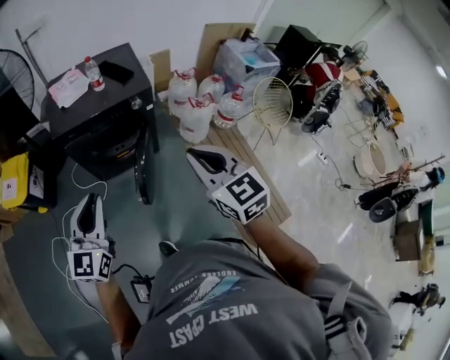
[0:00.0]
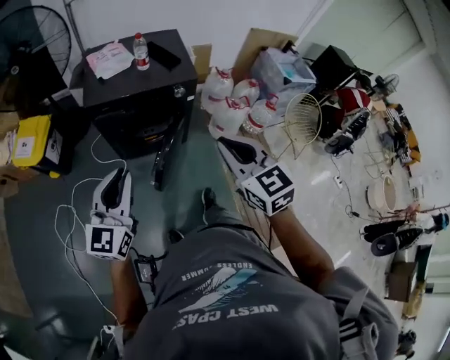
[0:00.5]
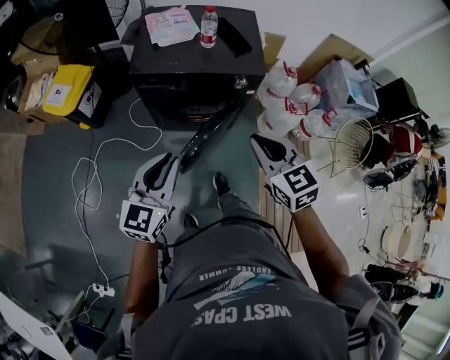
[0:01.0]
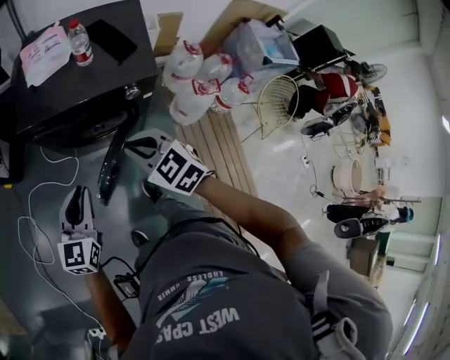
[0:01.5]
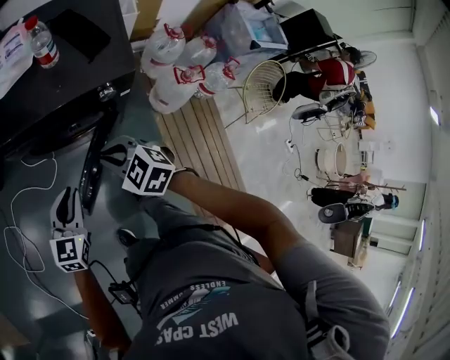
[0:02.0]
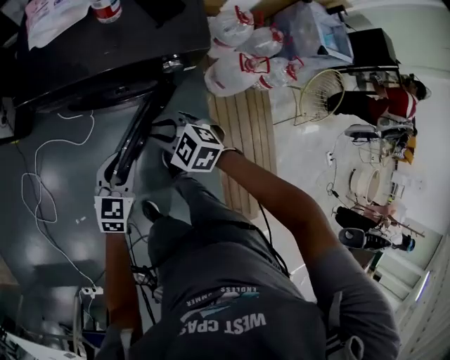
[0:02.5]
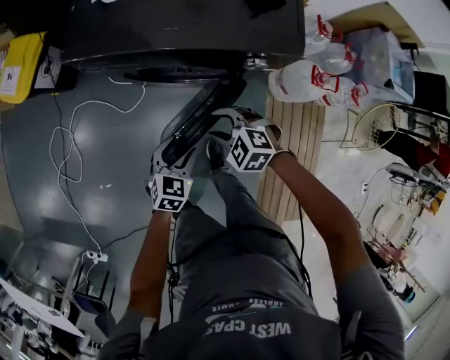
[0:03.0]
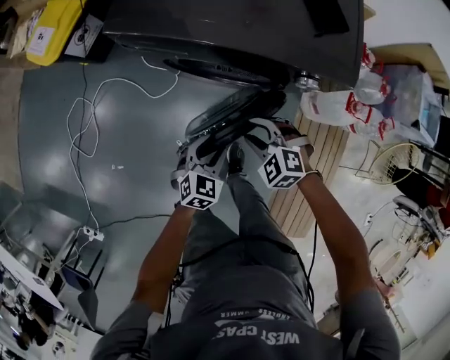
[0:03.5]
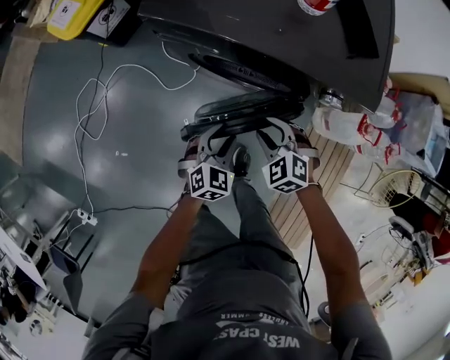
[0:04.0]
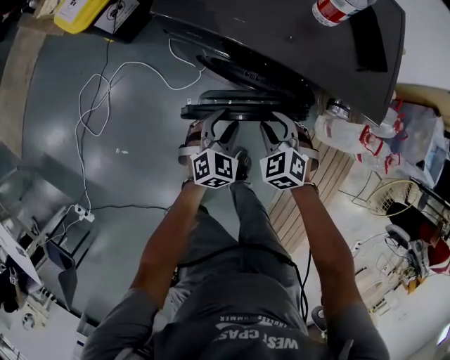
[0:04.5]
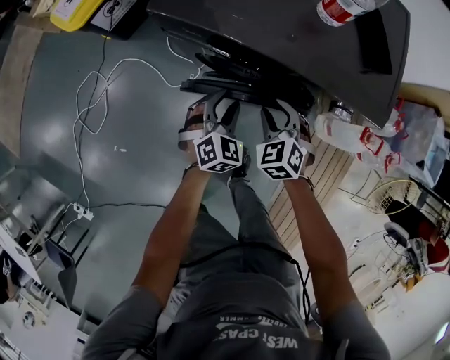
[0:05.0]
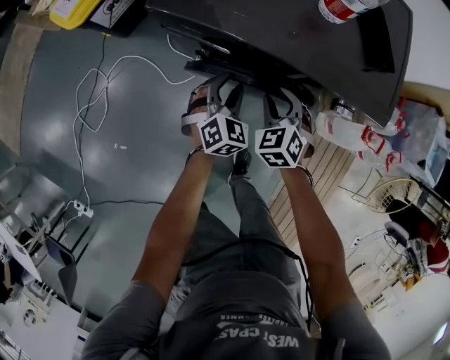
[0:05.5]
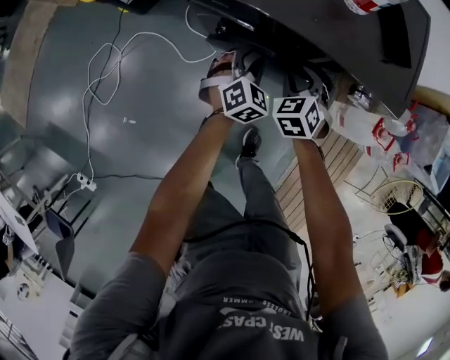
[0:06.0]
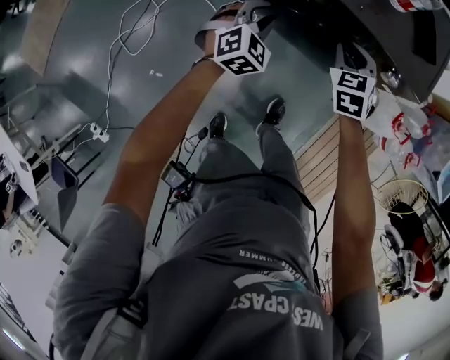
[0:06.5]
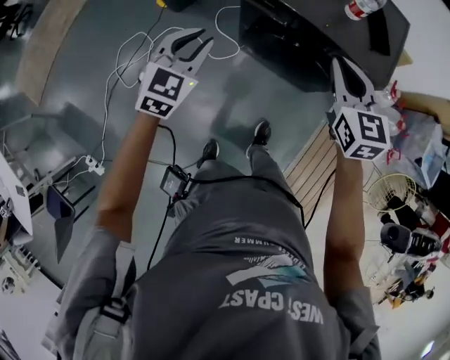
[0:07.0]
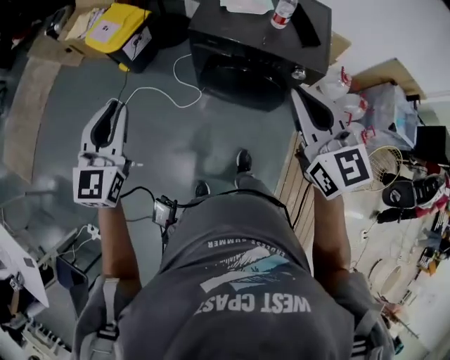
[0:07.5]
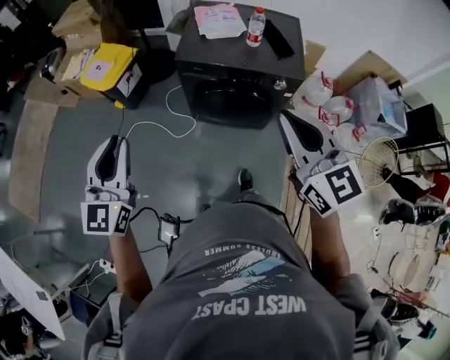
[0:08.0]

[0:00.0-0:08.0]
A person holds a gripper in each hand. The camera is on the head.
0:00.0 to 0:02.0: Both grippers travel together downward and forward, about 35 cm. The right gripper swivels roughly 40 degrees, while the left gripper turns by roughly 30 degrees.
0:02.0 to 0:04.0: Both grippers move downward, roughly 20 cm. The right gripper changes its angle by approximately 30 degrees, and opens its fingers, while the left gripper changes its angle by about 30 degrees, and opens its fingers.
0:04.0 to 0:06.0: Both grippers move forward, some 15 cm. The right gripper turns by approximately 30 degrees.
0:06.0 to 0:08.0: The left gripper is displaced upward, to the left and backward by about 60 cm, and tilts its fingers about 40 degrees upward, while the right gripper travels upward and backward by some 60 cm, tips its fingers upward by some 40 degrees, and closes.

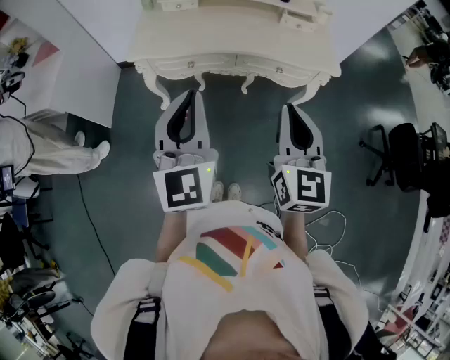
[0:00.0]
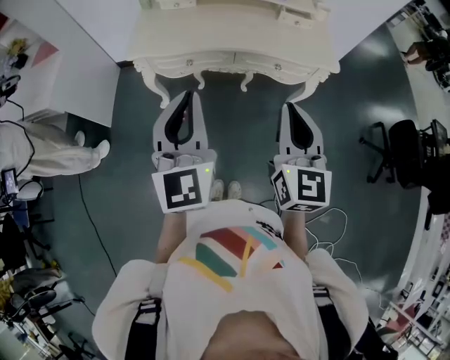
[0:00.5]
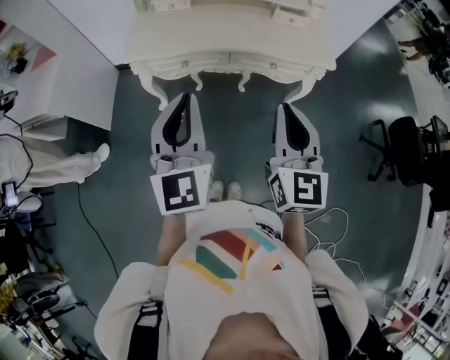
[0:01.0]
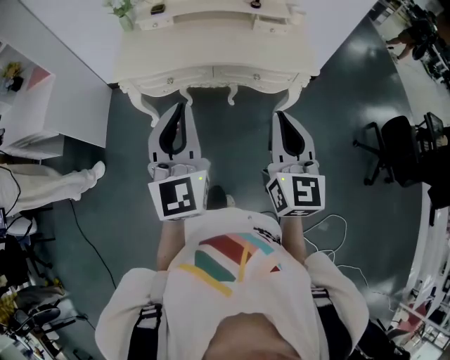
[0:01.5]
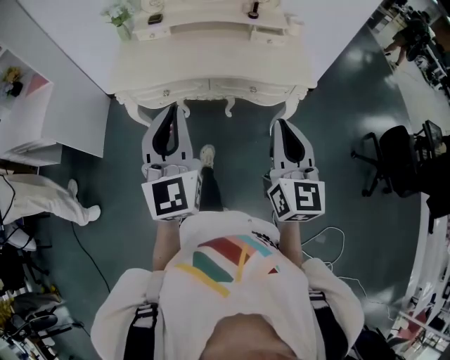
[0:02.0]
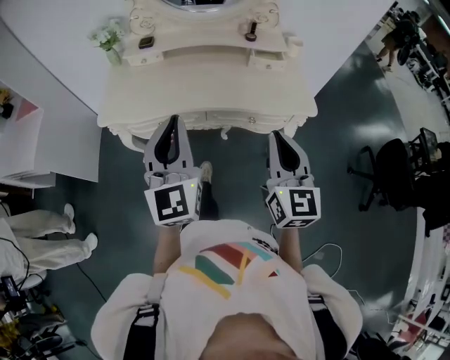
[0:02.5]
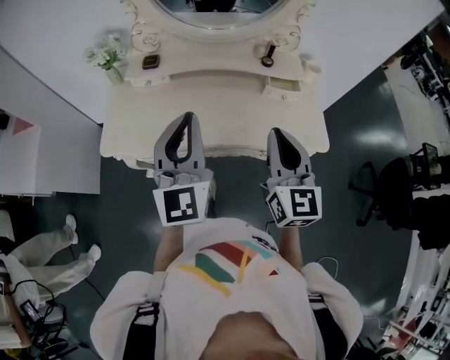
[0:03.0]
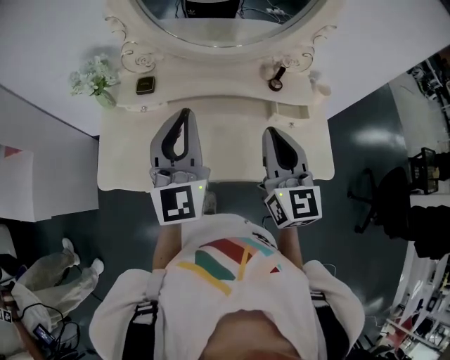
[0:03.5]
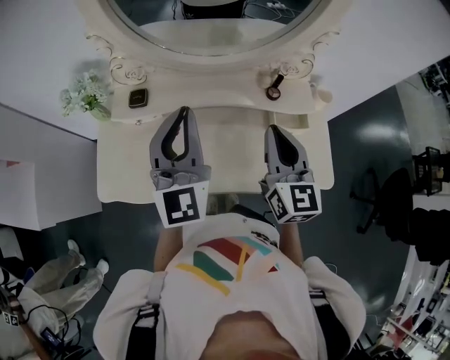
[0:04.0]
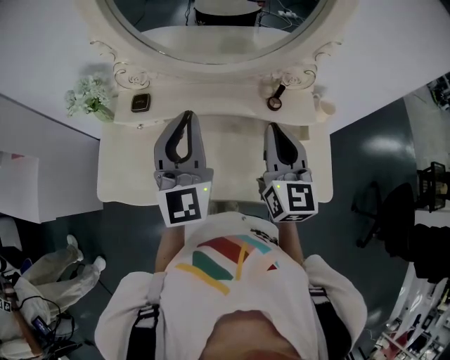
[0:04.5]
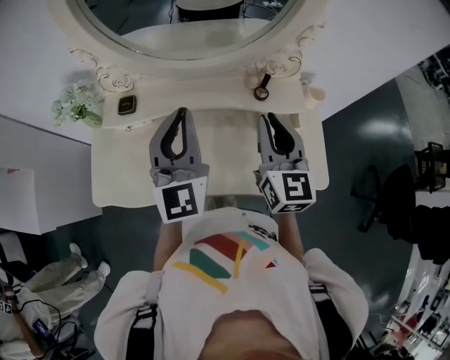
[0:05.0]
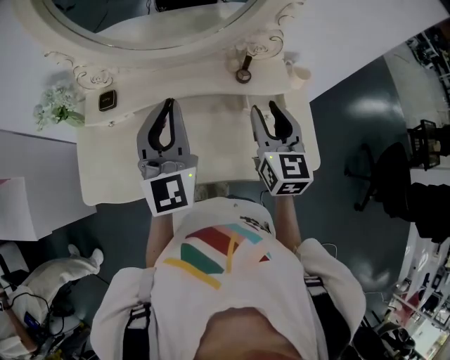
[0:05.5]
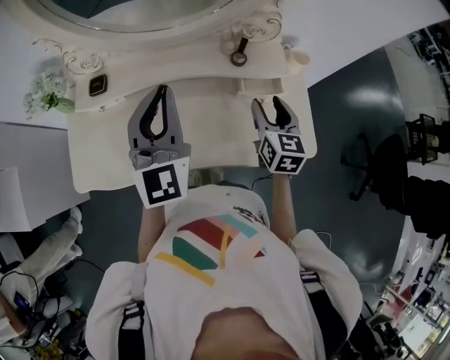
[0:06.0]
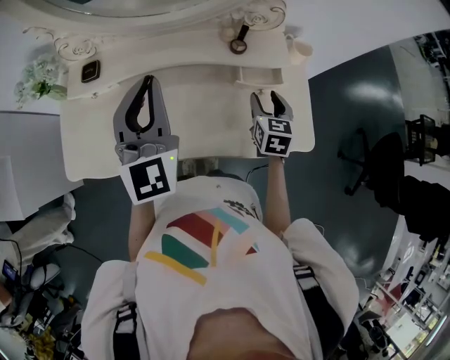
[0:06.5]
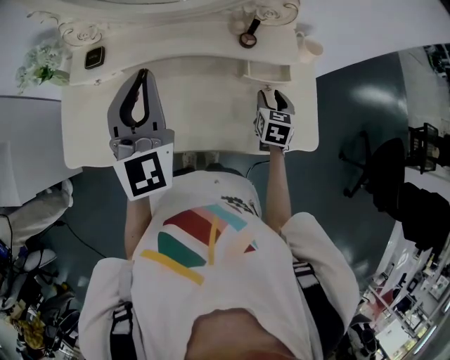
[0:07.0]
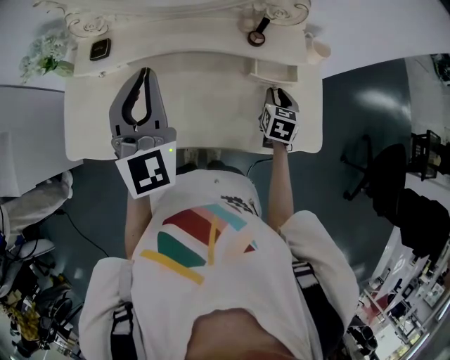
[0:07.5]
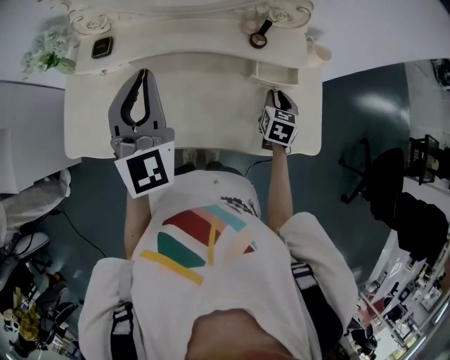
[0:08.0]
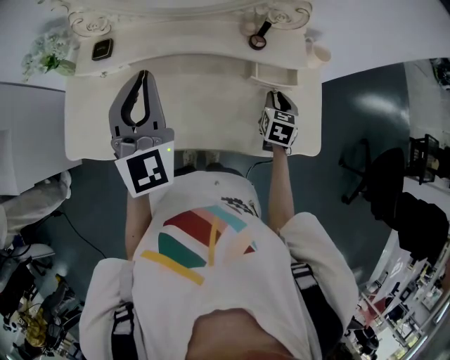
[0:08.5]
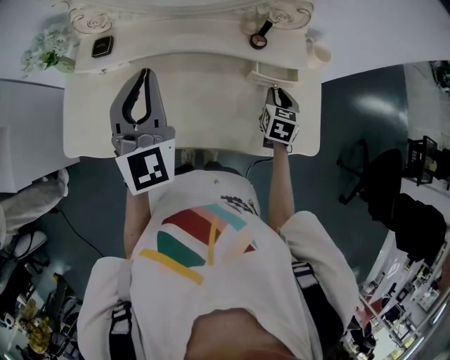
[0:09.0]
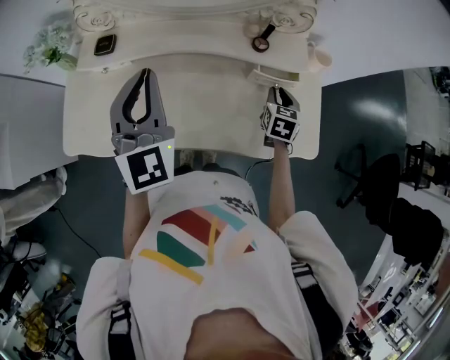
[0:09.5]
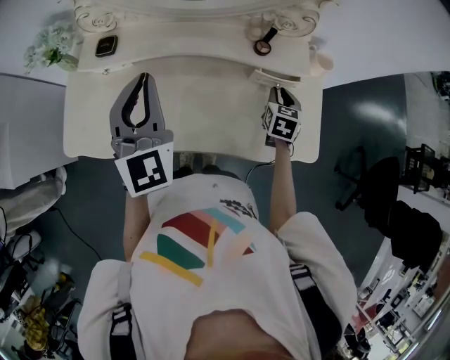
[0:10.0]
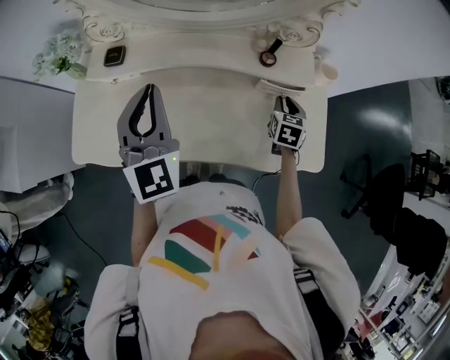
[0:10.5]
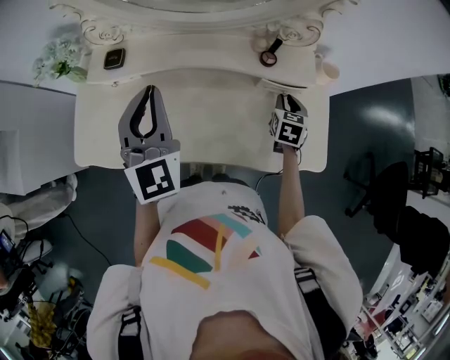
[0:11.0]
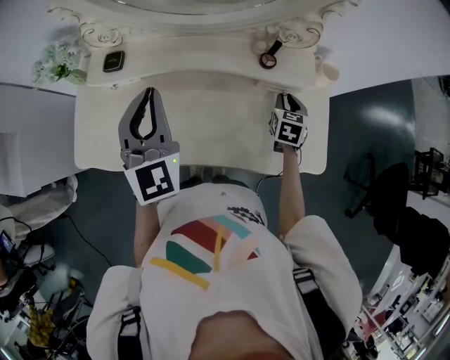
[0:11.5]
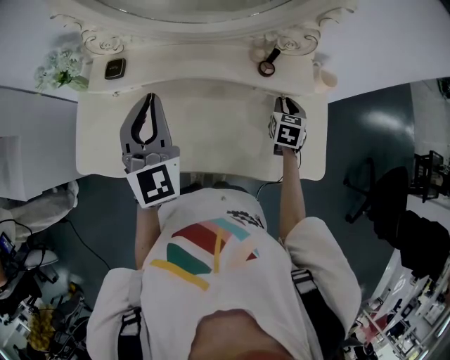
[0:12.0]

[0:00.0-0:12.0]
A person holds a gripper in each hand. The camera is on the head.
0:00.0 to 0:02.0: Both grippers move to the right, about 10 cm.
0:02.0 to 0:04.0: The two grippers travel together, forward, roughly 50 cm.
0:04.0 to 0:06.0: The left gripper is displaced to the right by approximately 5 cm. Meanwhile the right gripper moves downward and to the right, approximately 20 cm, changes its angle by approximately 20 degrees, and opens its fingers.
0:06.0 to 0:08.0: The right gripper goes approximately 15 cm downward, changes its angle by some 20 degrees, and closes up. The left gripper ends up approximately 5 cm from where it was.
0:08.0 to 0:10.0: The grippers move only a little.
0:10.0 to 0:12.0: The grippers make only small movements.

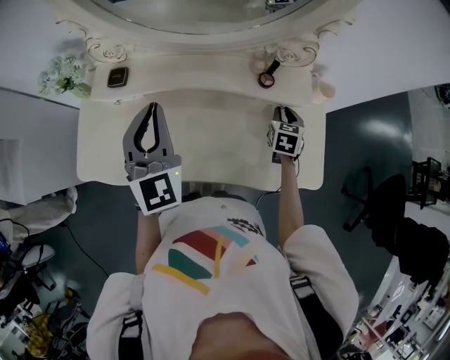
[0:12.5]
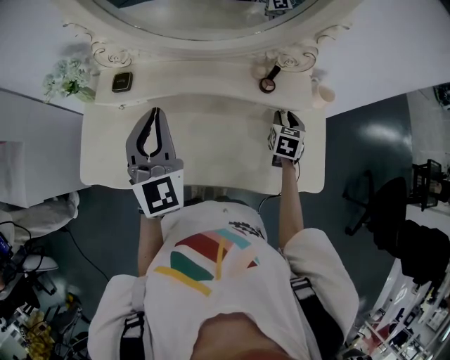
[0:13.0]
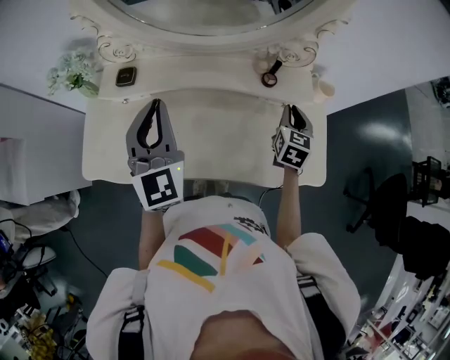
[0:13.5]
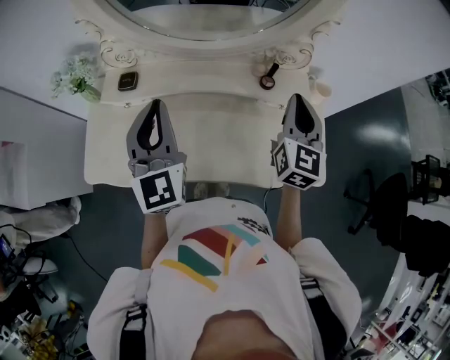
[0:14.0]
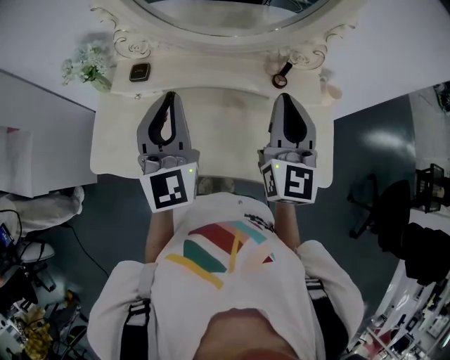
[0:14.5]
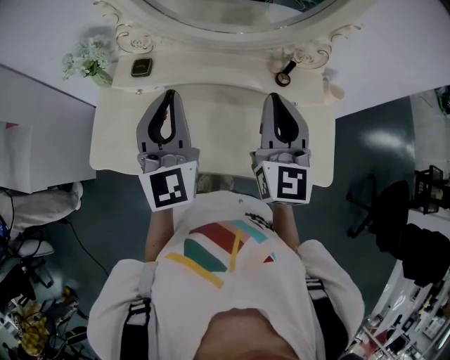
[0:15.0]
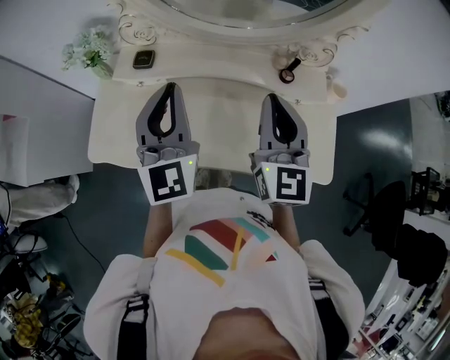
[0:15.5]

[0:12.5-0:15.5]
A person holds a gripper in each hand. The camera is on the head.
0:12.5 to 0:14.0: The left gripper shifts by approximately 5 cm. Meanwhile the right gripper travels upward by roughly 25 cm, and tilts its fingers roughly 40 degrees upward.
0:14.0 to 0:15.5: The right gripper is displaced to the left by about 15 cm.

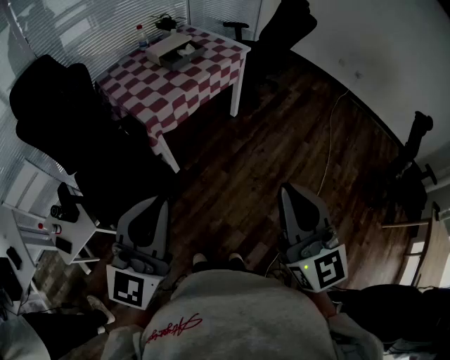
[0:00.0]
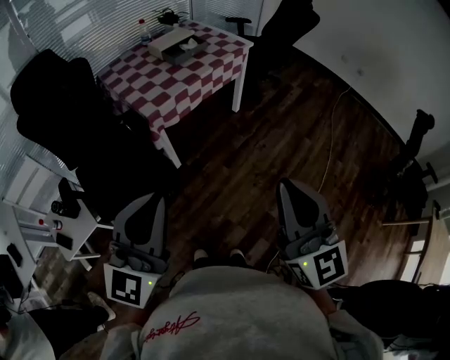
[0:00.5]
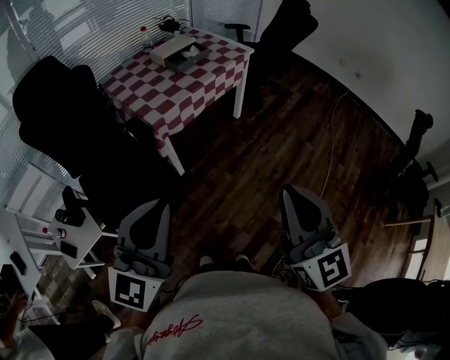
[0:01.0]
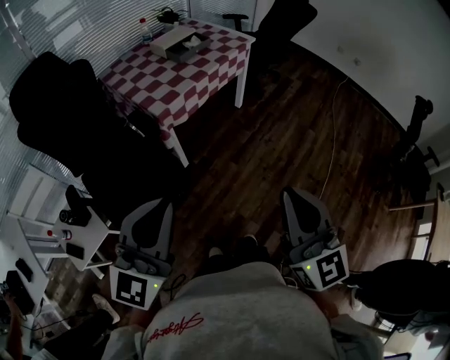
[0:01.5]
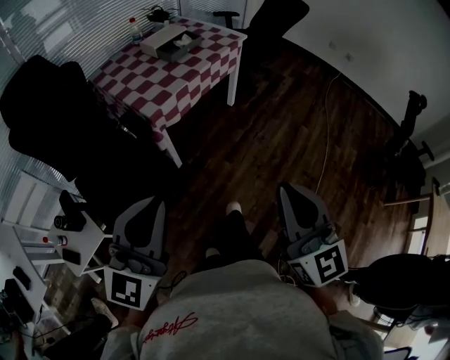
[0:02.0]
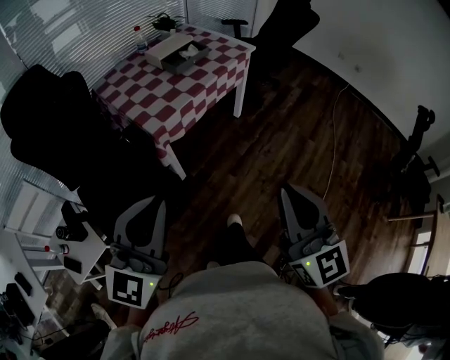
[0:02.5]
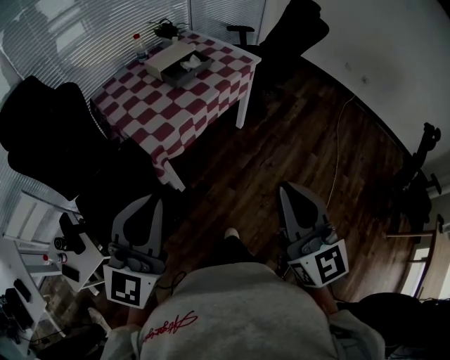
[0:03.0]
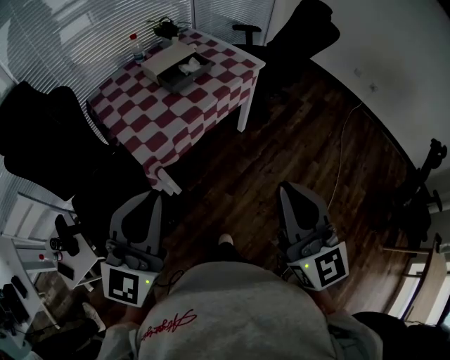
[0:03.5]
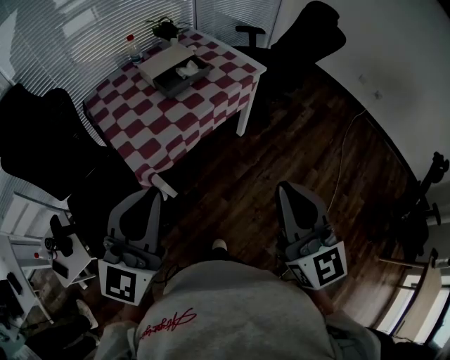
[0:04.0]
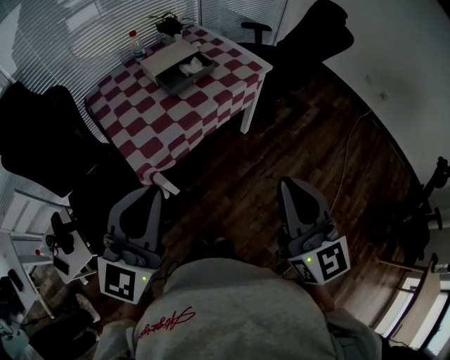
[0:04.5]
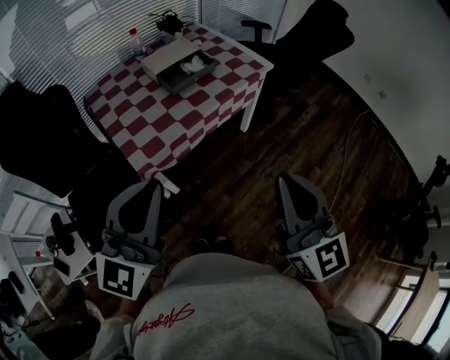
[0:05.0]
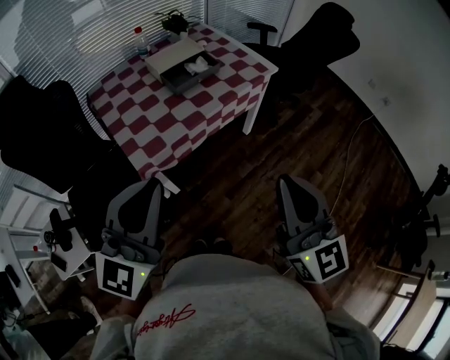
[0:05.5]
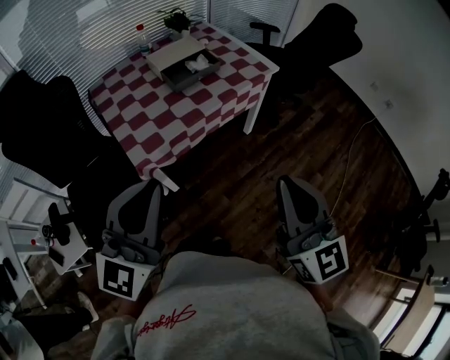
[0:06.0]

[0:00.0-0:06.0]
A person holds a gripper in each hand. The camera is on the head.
0:00.0 to 0:02.0: The grippers both shift to the left by roughly 10 cm.
0:02.0 to 0:04.0: Both grippers travel together forward, about 30 cm.
0:04.0 to 0:06.0: The grippers stay close to where they were, moving slightly.
